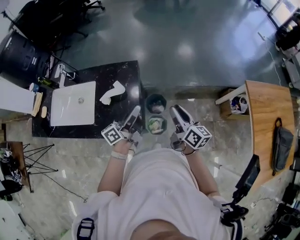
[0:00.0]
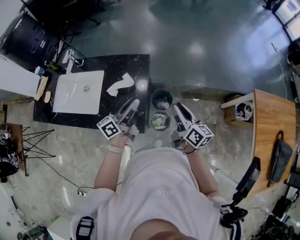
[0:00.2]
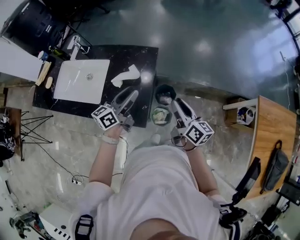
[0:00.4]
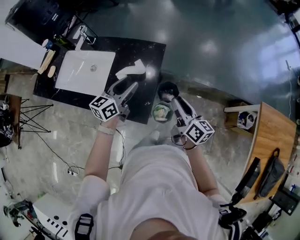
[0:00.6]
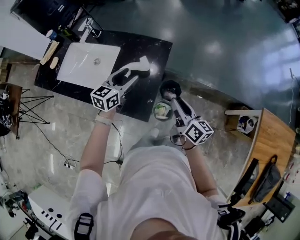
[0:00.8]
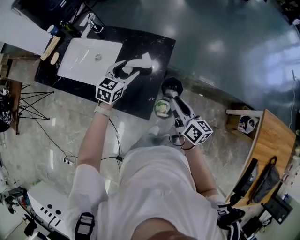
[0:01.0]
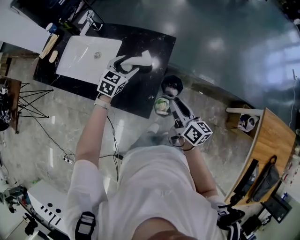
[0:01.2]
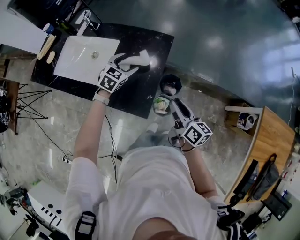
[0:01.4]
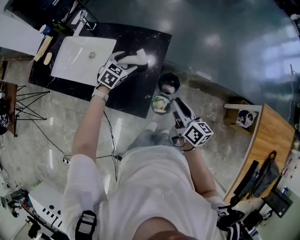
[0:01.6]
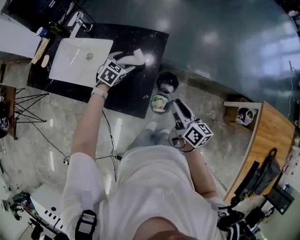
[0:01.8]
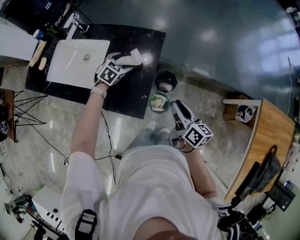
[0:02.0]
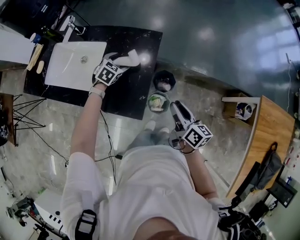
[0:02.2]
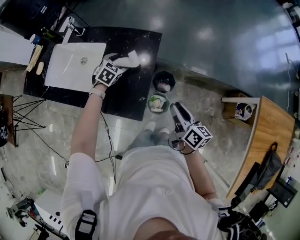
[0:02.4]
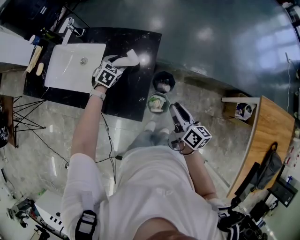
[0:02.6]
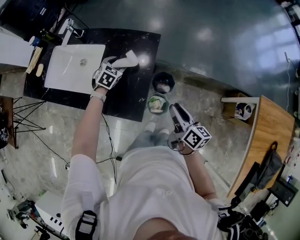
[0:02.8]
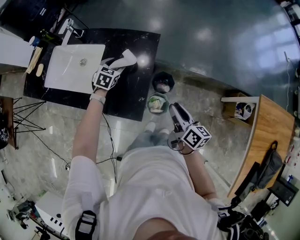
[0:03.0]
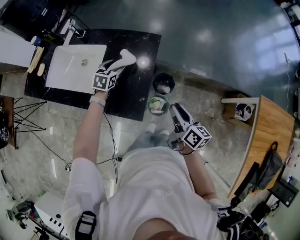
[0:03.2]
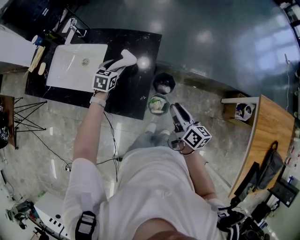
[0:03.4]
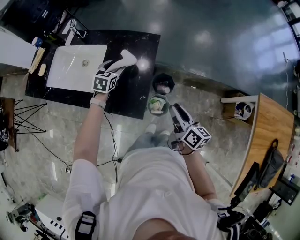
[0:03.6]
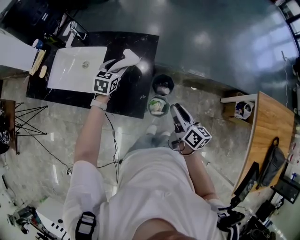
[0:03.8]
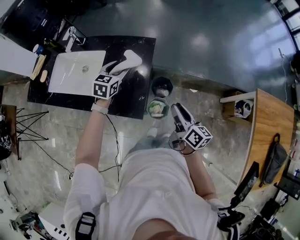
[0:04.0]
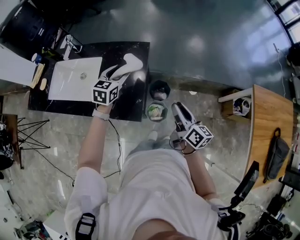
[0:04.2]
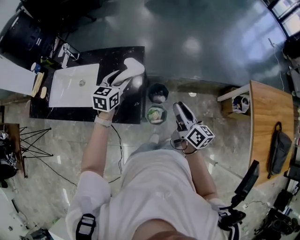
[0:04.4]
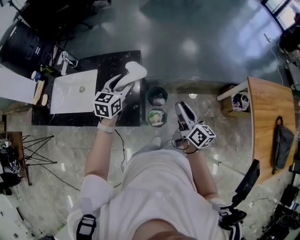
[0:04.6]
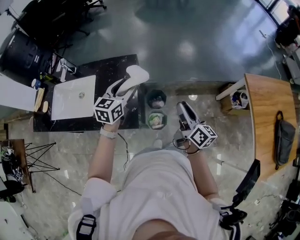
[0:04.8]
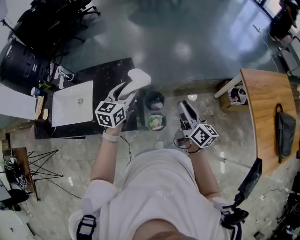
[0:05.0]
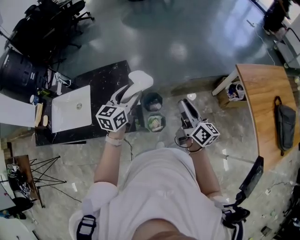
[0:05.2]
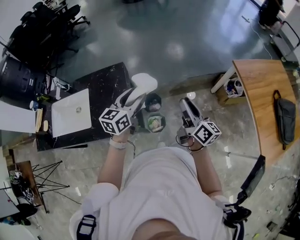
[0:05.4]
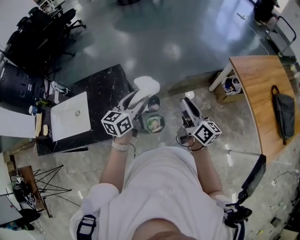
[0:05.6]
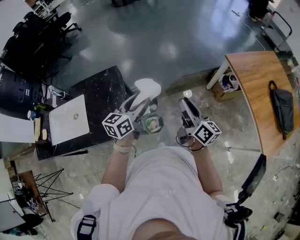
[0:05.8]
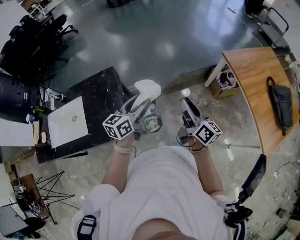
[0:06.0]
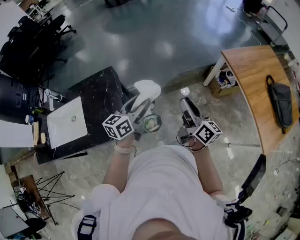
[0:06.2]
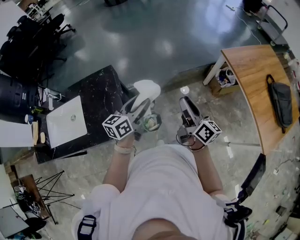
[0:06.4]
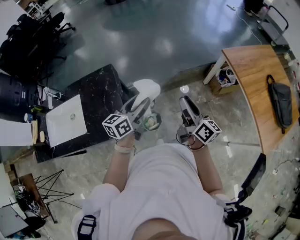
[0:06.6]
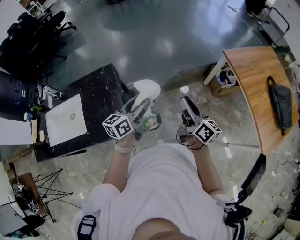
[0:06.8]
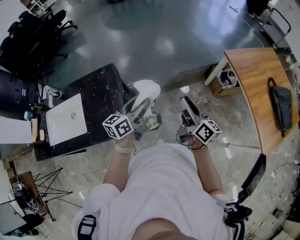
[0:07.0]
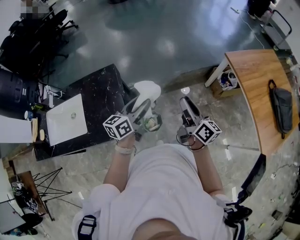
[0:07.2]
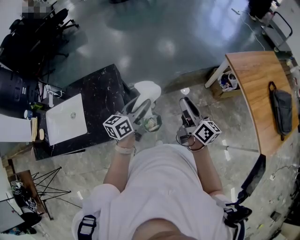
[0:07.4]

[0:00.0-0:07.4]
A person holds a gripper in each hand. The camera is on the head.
0:00.0 to 0:01.4: The right gripper travels to the left and downward by approximately 10 cm, and swivels about 20 degrees; the left gripper moves to the left, forward and downward, some 25 cm, angles its fingers downward, by roughly 50 degrees, and opens its fingers.
0:01.4 to 0:03.0: The left gripper travels downward by approximately 5 cm.
0:03.0 to 0:04.4: The left gripper moves upward, to the right and backward, some 20 cm, and turns by some 30 degrees; the right gripper shifts some 10 cm upward and to the right.
0:04.4 to 0:06.0: The left gripper moves to the right, about 25 cm, and turns by about 30 degrees. Meanwhile the right gripper is displaced to the right by some 15 cm, and rotates approximately 20 degrees.
0:06.0 to 0:07.4: The grippers make only small movements.

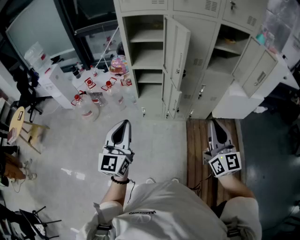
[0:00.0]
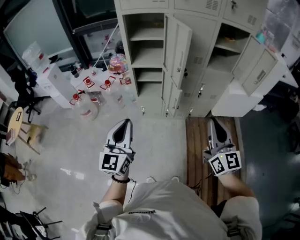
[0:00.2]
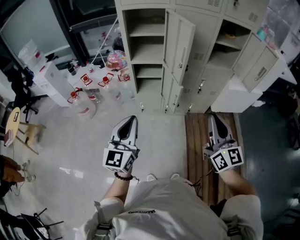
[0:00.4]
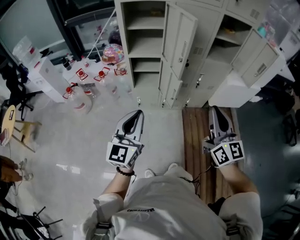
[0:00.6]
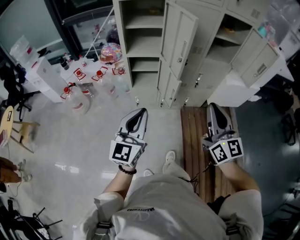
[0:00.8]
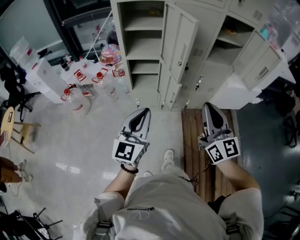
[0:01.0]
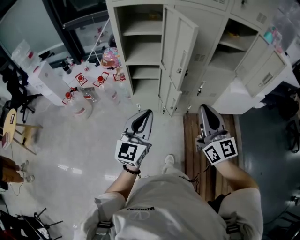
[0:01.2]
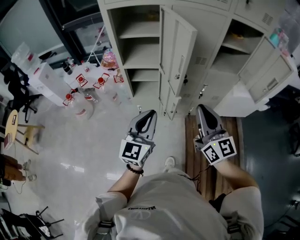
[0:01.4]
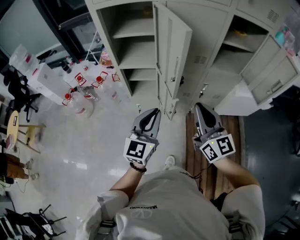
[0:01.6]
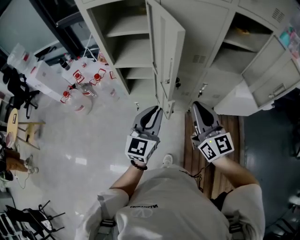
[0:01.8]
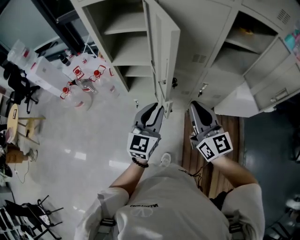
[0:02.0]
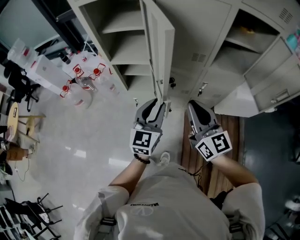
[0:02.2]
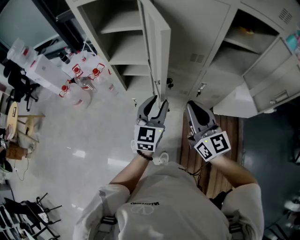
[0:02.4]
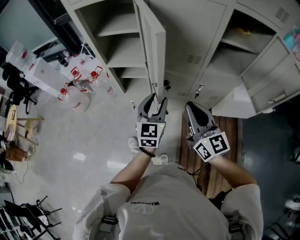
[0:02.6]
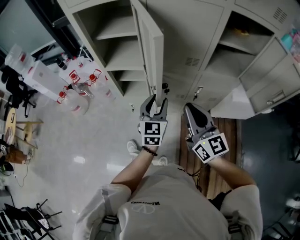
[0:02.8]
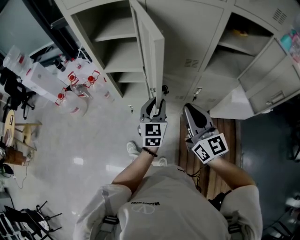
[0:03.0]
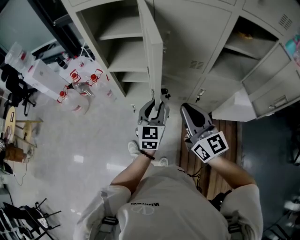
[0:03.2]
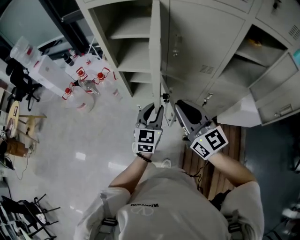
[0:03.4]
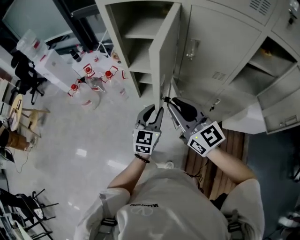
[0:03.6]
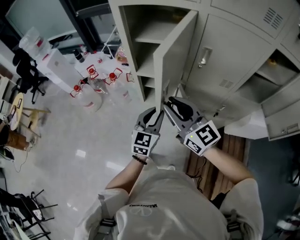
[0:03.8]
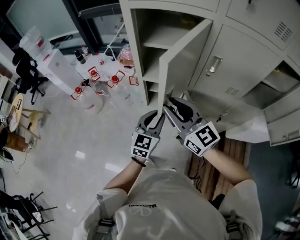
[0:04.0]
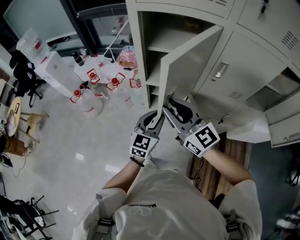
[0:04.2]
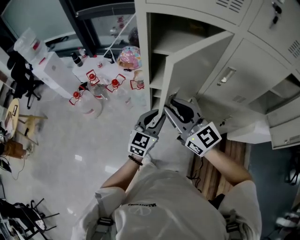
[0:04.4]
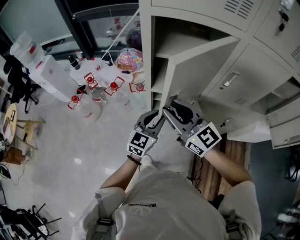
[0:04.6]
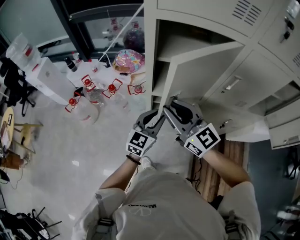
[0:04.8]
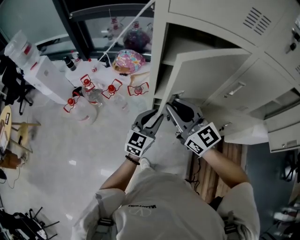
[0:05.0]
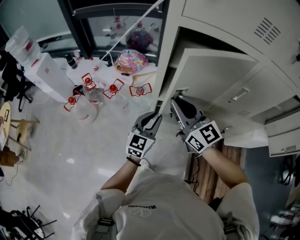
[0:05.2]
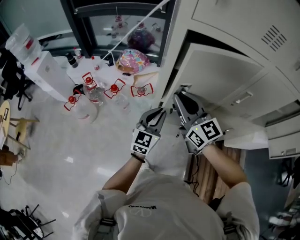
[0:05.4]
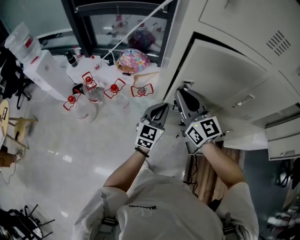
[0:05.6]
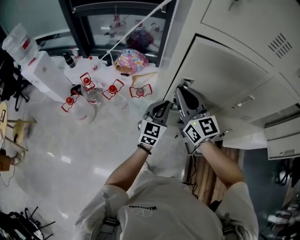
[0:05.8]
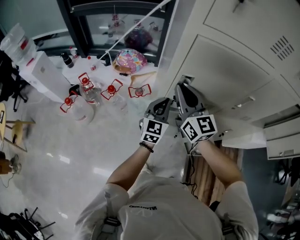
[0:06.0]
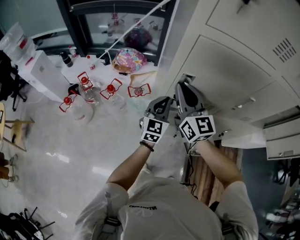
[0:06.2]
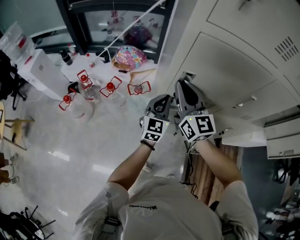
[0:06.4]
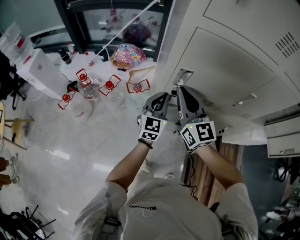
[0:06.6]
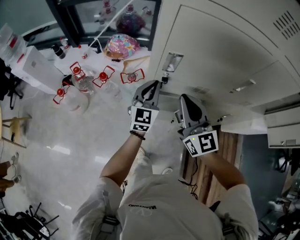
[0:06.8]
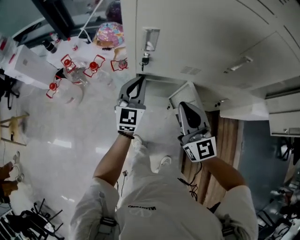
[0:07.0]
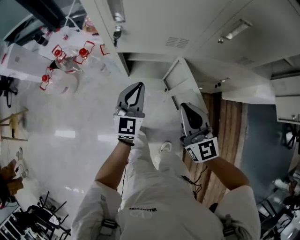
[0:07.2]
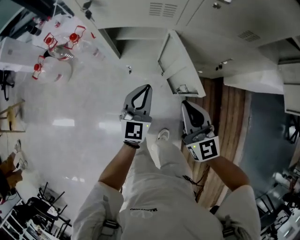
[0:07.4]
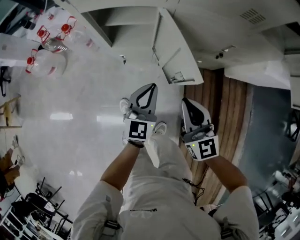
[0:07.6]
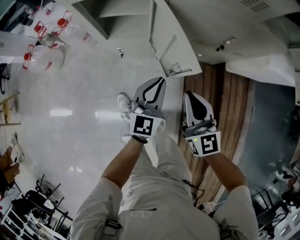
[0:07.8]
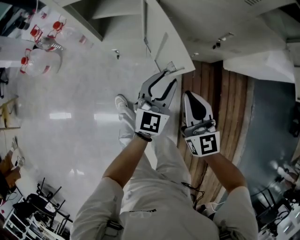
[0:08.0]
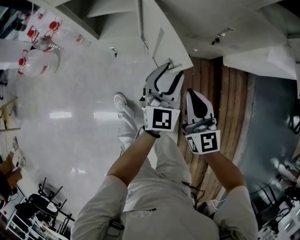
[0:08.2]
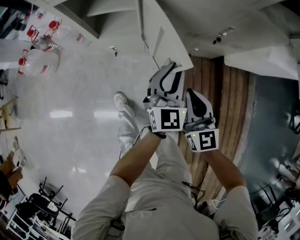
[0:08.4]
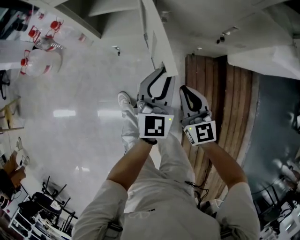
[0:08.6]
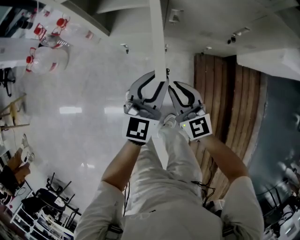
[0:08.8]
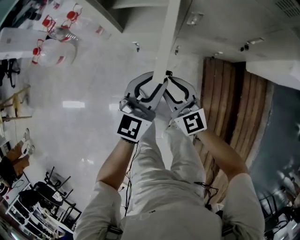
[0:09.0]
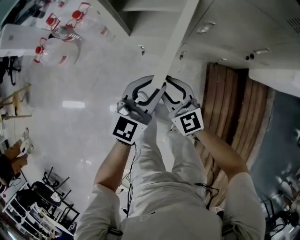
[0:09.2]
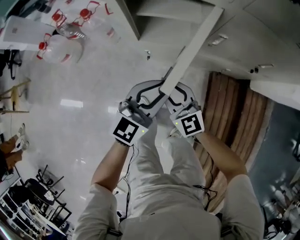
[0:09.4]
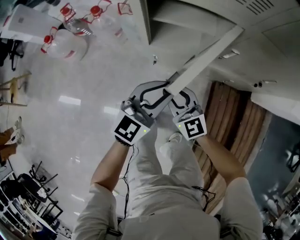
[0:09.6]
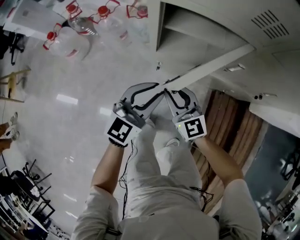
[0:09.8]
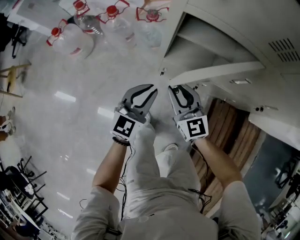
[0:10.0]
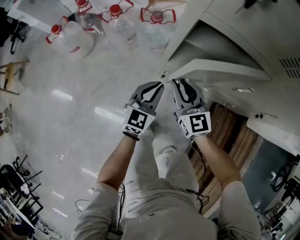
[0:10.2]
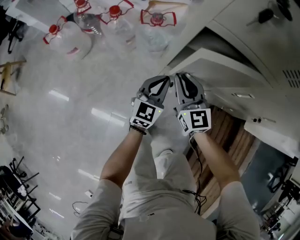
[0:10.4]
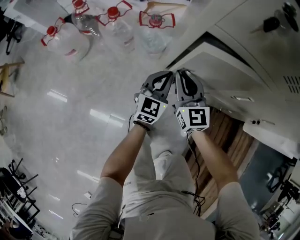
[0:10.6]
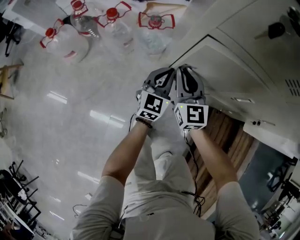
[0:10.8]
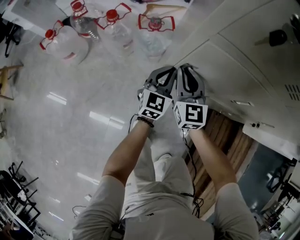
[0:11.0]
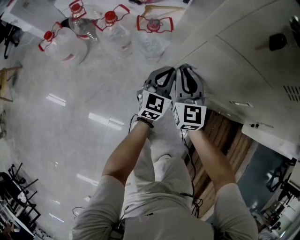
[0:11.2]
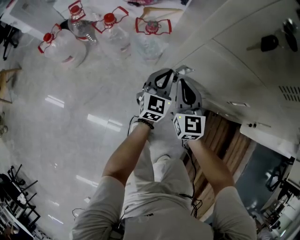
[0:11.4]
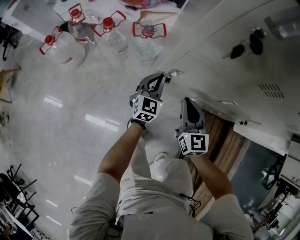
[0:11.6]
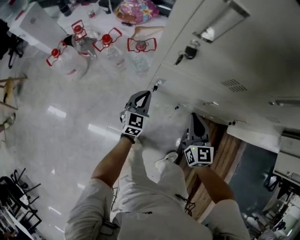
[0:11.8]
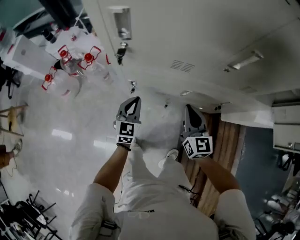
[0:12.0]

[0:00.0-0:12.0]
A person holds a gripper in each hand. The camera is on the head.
0:00.0 to 0:01.6: The left gripper travels forward and to the right by about 25 cm; the right gripper travels forward by roughly 20 cm.
0:01.6 to 0:03.0: The right gripper travels forward by about 5 cm. Meanwhile the left gripper shifts some 20 cm forward, to the right and downward, and opens up.
0:03.0 to 0:04.4: The grippers both shift to the left and forward by about 30 cm. The right gripper turns by about 30 degrees.
0:04.4 to 0:06.0: The two grippers go approximately 15 cm forward. The left gripper closes its fingers, while the right gripper turns by some 20 degrees.
0:06.0 to 0:07.6: The right gripper travels downward, backward and to the right by some 50 cm, while the left gripper heads backward, downward and to the right, covering approximately 40 cm.
0:07.6 to 0:09.0: The left gripper travels to the right and back again, approximately 10 cm each way, and opens its fingers. The right gripper shifts about 15 cm downward and to the left, and opens.
0:09.0 to 0:10.4: The left gripper goes roughly 30 cm to the left, forward and downward, rotates roughly 20 degrees, and closes. The right gripper travels forward and to the left by approximately 30 cm, and closes up.
0:10.4 to 0:12.0: The right gripper travels to the right and upward by roughly 30 cm, and swivels approximately 20 degrees. Meanwhile the left gripper travels upward by about 15 cm.

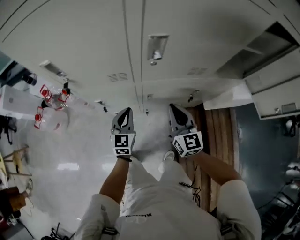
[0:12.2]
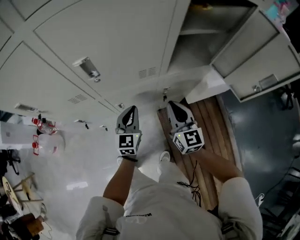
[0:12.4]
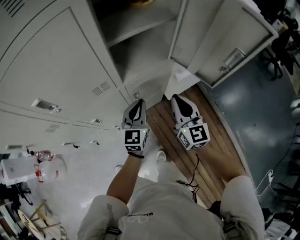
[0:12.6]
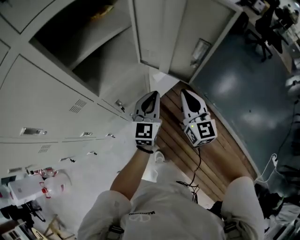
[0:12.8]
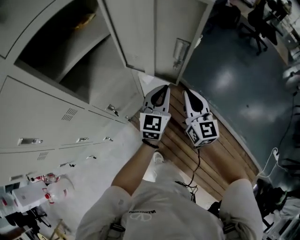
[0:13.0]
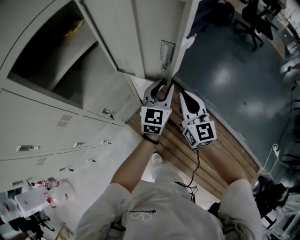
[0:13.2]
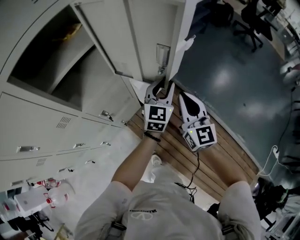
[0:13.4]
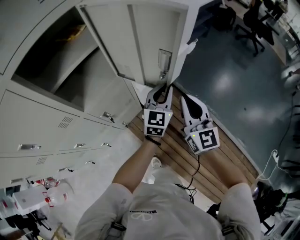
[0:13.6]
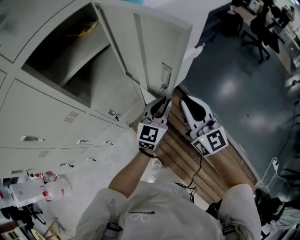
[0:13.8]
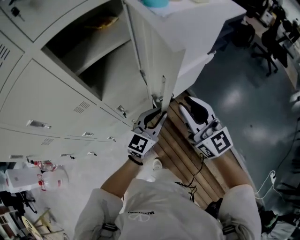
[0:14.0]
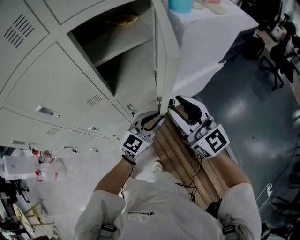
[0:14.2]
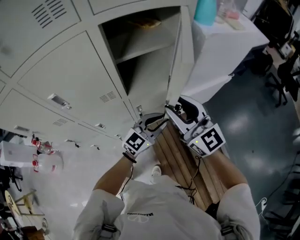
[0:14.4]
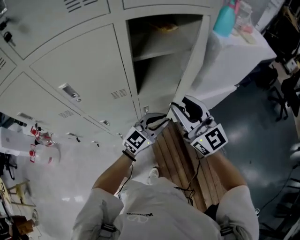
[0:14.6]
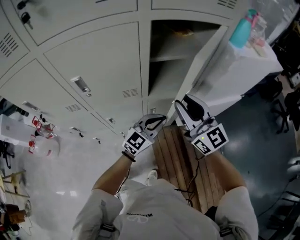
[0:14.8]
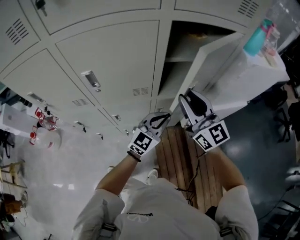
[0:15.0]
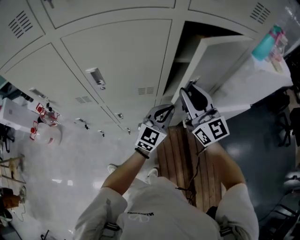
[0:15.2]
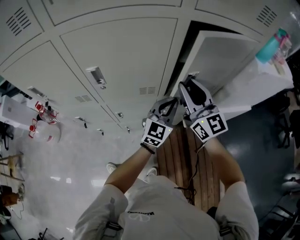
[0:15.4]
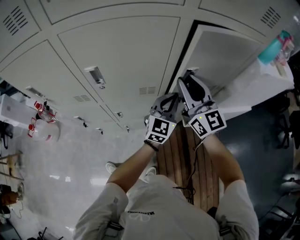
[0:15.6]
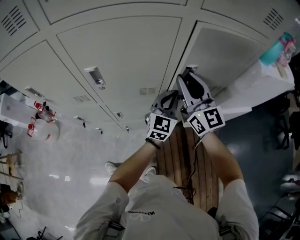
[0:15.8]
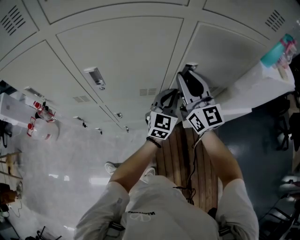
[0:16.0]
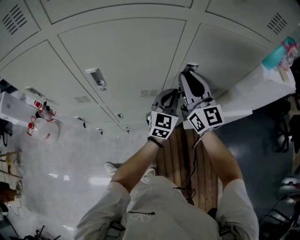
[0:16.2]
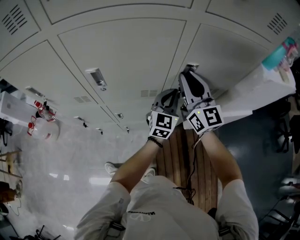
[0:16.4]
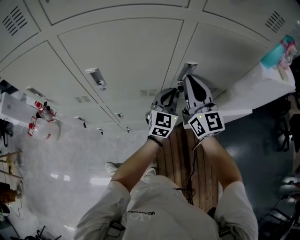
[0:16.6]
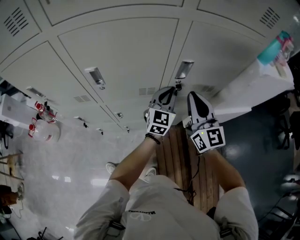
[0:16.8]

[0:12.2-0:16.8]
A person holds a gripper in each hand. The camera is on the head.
0:12.2 to 0:13.8: Both grippers are carried approximately 60 cm. The left gripper changes its angle by approximately 60 degrees. The right gripper changes its angle by roughly 30 degrees.
0:13.8 to 0:15.2: The left gripper ends up approximately 30 cm from where it was, and swivels some 30 degrees. The right gripper ends up some 35 cm from where it was, and swivels some 40 degrees.
0:15.2 to 0:16.8: The right gripper moves about 10 cm forward and comes back, and closes its fingers, while the left gripper moves forward, some 10 cm.
